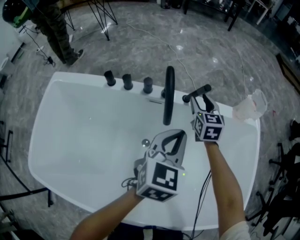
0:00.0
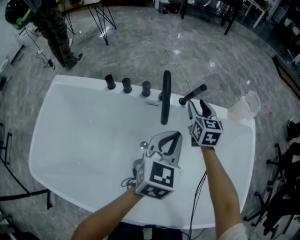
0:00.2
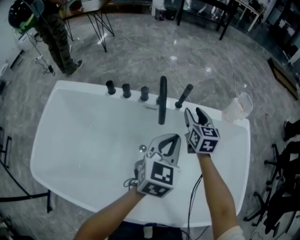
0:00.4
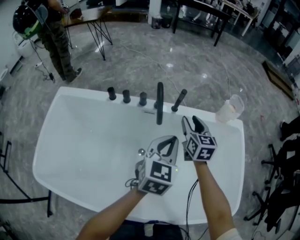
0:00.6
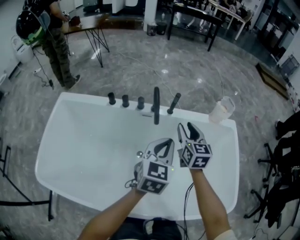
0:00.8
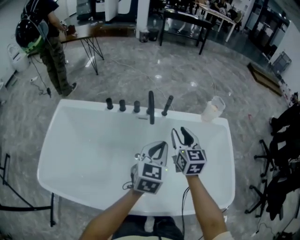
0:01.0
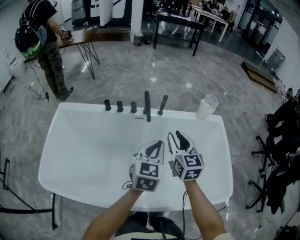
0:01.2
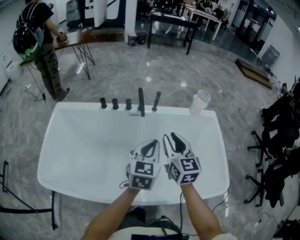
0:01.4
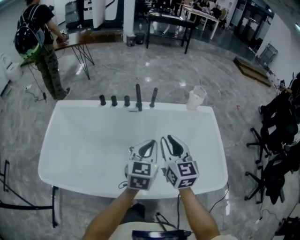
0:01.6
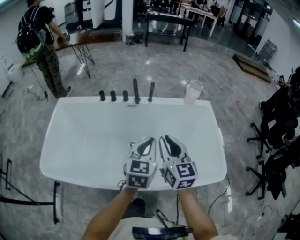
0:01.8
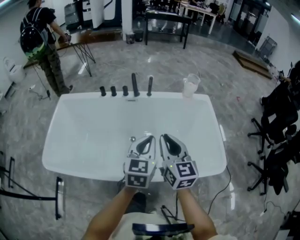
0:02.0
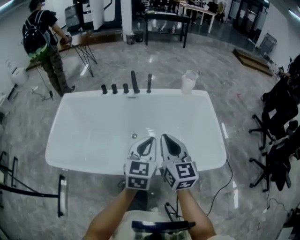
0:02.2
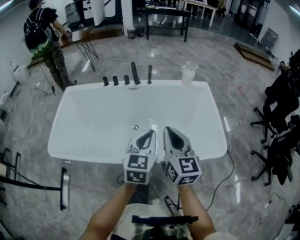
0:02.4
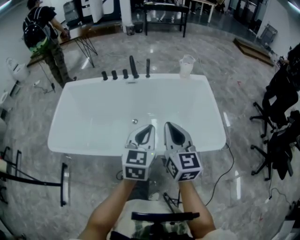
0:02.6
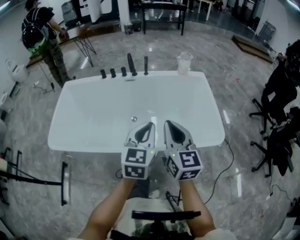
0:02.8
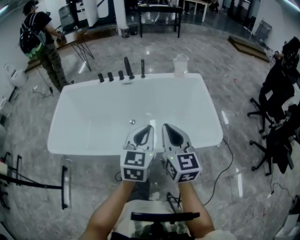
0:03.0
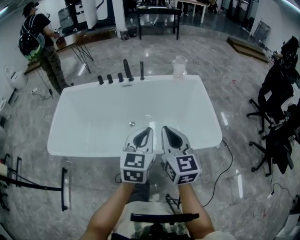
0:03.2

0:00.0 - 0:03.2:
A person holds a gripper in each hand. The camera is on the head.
0:00.0 - 0:01.6: The left gripper moves backward and upward, approximately 25 cm. Meanwhile the right gripper goes about 50 cm backward and upward, and closes its fingers.
0:01.6 - 0:03.2: Both grippers move backward, approximately 25 cm. The right gripper closes up.

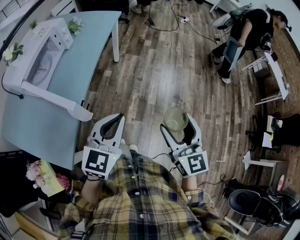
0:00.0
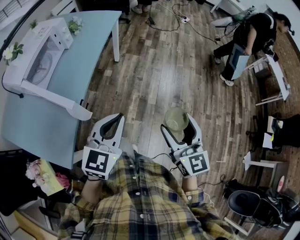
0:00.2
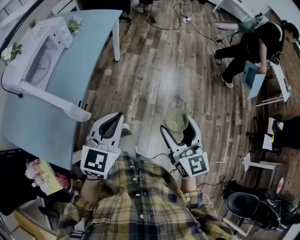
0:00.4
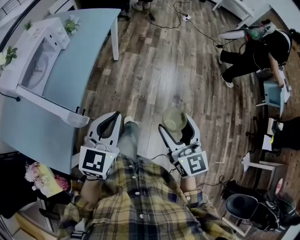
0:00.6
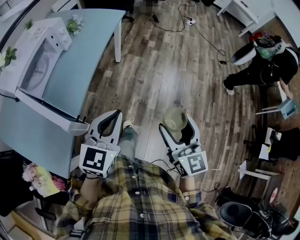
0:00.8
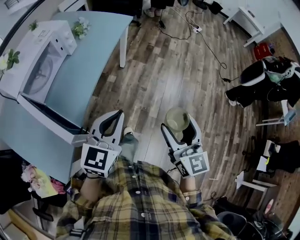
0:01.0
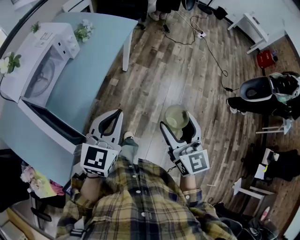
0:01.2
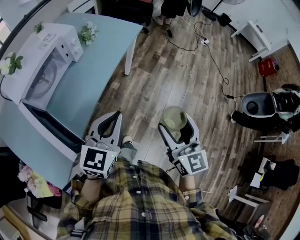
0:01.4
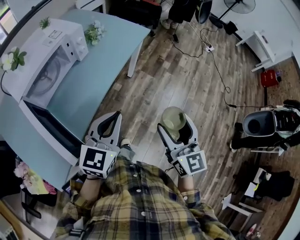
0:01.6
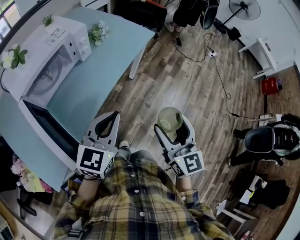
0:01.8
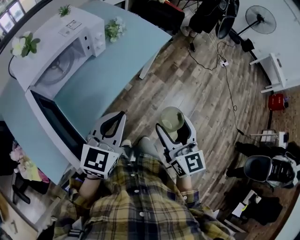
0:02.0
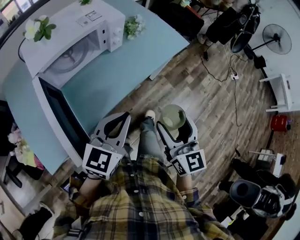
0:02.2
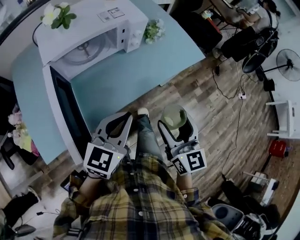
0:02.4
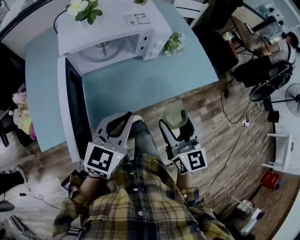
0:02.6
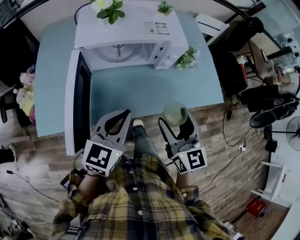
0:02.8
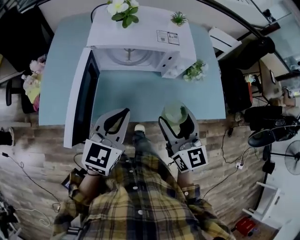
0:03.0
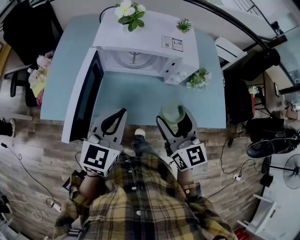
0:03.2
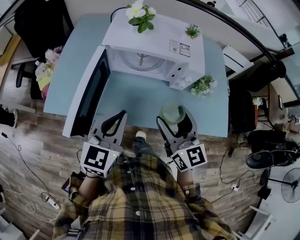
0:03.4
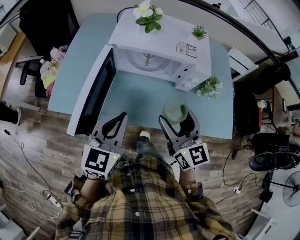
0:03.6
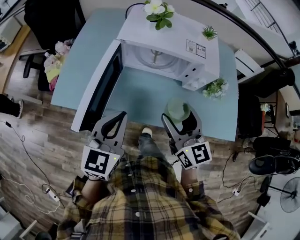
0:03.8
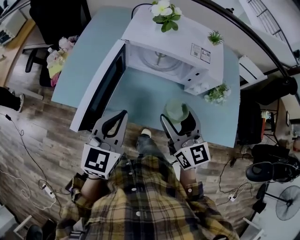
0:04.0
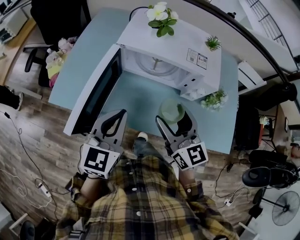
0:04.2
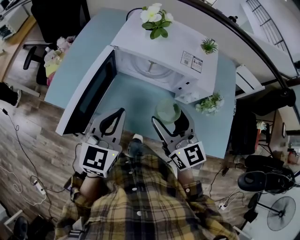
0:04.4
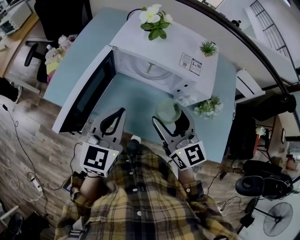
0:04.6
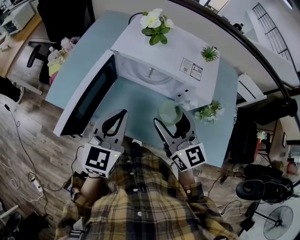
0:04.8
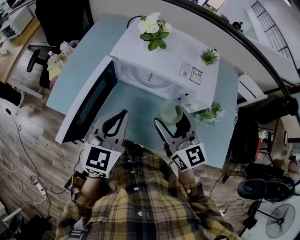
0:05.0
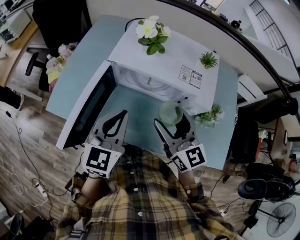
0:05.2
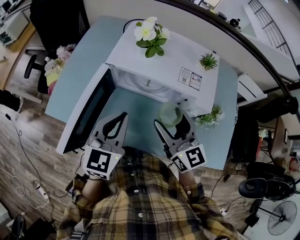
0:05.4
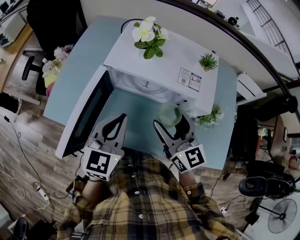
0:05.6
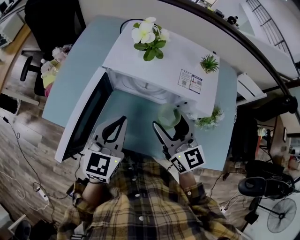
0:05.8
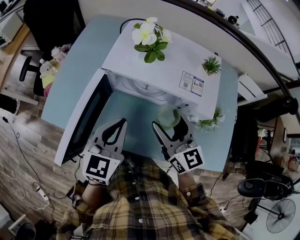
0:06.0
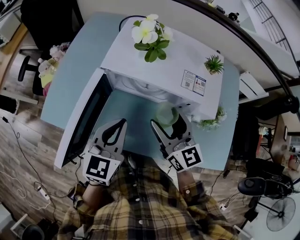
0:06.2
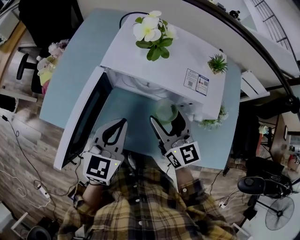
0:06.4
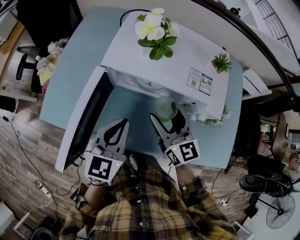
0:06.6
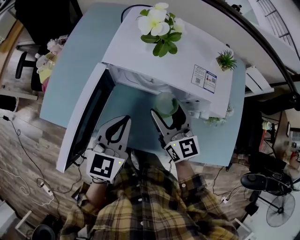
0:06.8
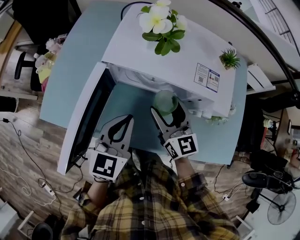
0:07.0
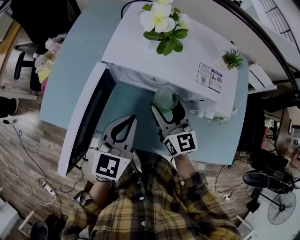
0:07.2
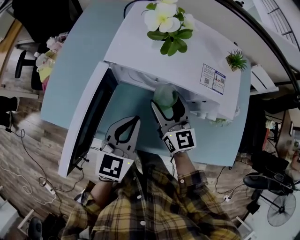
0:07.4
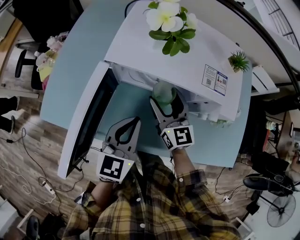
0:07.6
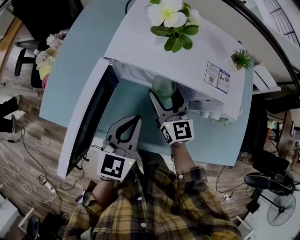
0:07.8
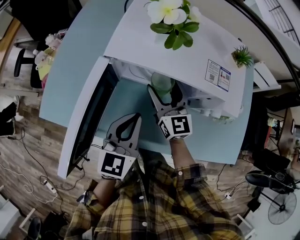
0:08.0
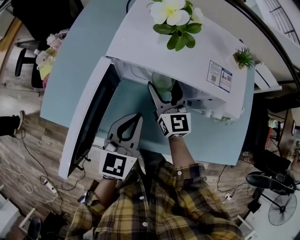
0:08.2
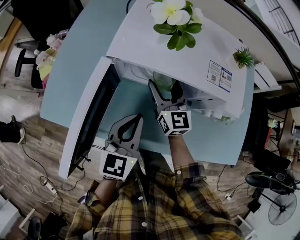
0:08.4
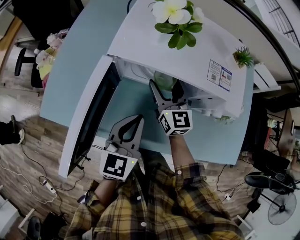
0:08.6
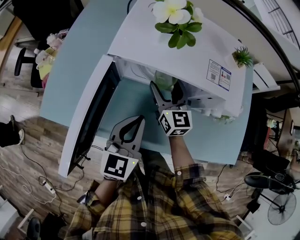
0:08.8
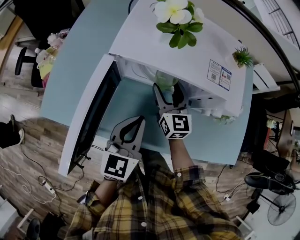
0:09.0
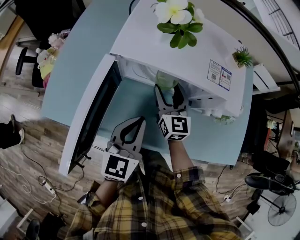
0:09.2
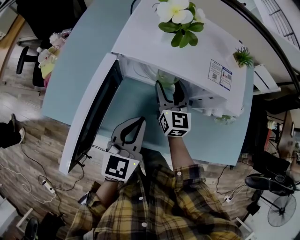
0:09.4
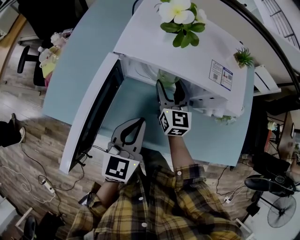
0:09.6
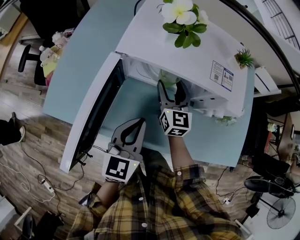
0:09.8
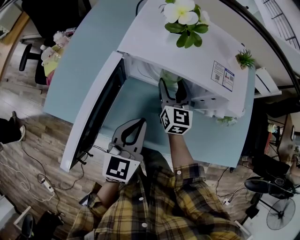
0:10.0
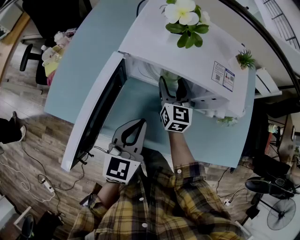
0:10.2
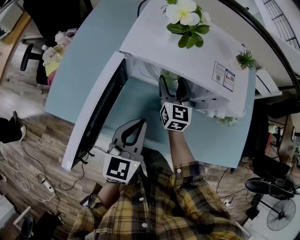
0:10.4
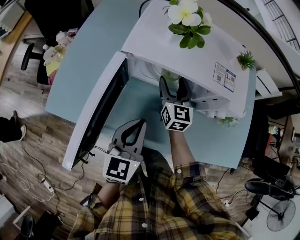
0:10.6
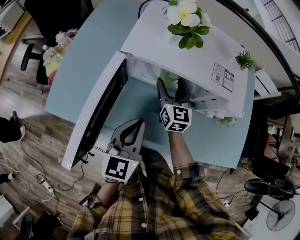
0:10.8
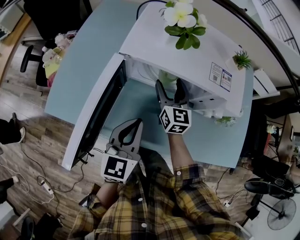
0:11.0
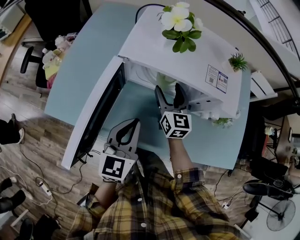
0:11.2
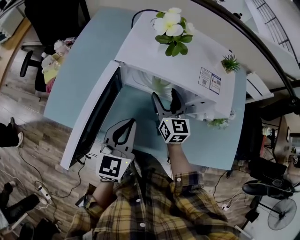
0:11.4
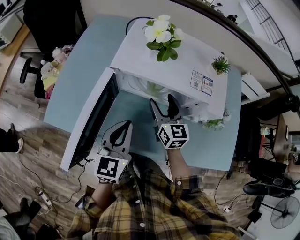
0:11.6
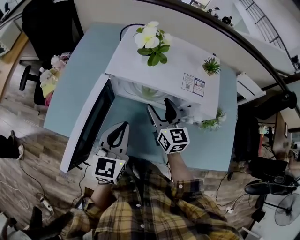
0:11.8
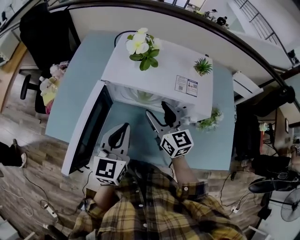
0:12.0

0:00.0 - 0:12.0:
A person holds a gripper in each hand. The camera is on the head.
0:00.0 - 0:01.6: The grippers both shift forward by about 25 cm.
0:01.6 - 0:03.0: The left gripper changes place by some 15 cm, and swivels about 60 degrees. Meanwhile the right gripper shifts by roughly 35 cm, and turns by some 60 degrees.
0:03.0 - 0:04.4: The left gripper changes its angle by approximately 20 degrees. Meanwhile the right gripper ends up some 10 cm from where it was, and changes its angle by some 30 degrees.
0:04.4 - 0:06.0: Both grippers travel together forward, approximately 10 cm.
0:06.0 - 0:07.6: The left gripper moves downward, about 5 cm. Meanwhile the right gripper is displaced downward and forward by about 15 cm.
0:07.6 - 0:09.0: The grippers stay close to where they were, moving slightly.
0:09.0 - 0:10.4: The grippers stay close to where they were, moving slightly.
0:10.4 - 0:12.0: The left gripper is displaced upward by roughly 5 cm, while the right gripper heads upward and backward, covering about 10 cm.

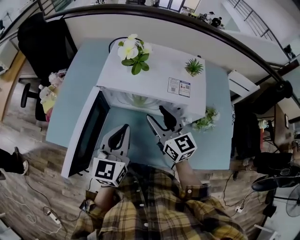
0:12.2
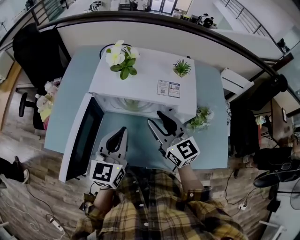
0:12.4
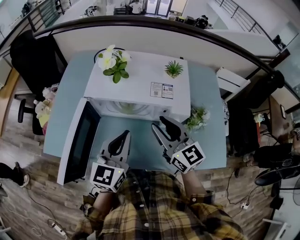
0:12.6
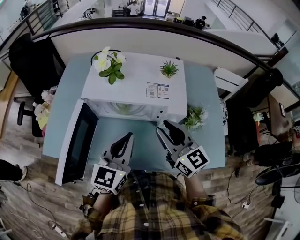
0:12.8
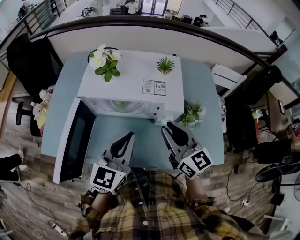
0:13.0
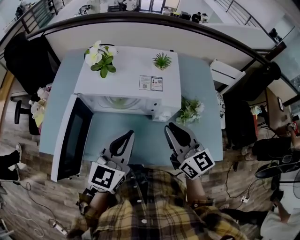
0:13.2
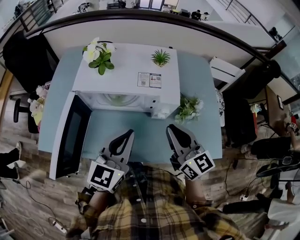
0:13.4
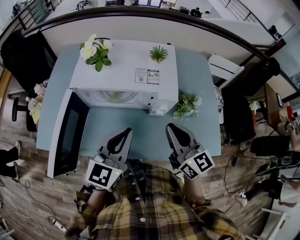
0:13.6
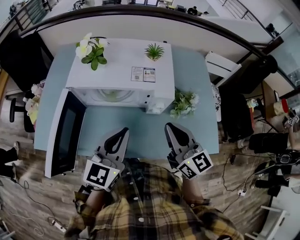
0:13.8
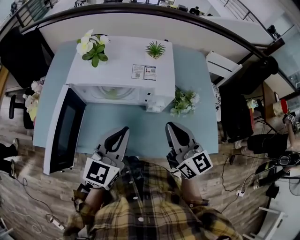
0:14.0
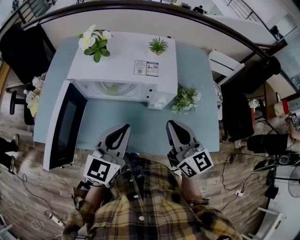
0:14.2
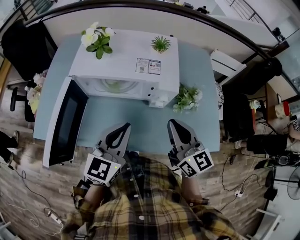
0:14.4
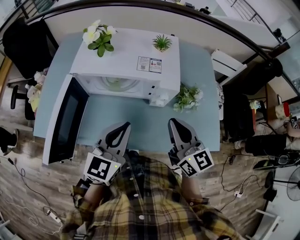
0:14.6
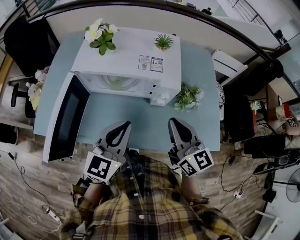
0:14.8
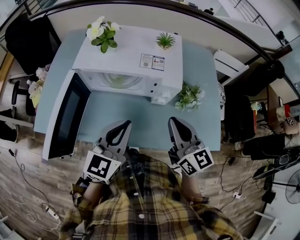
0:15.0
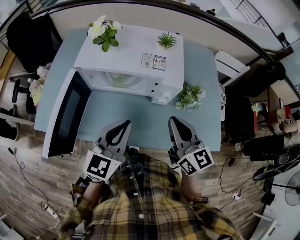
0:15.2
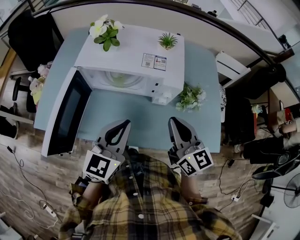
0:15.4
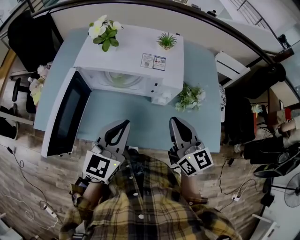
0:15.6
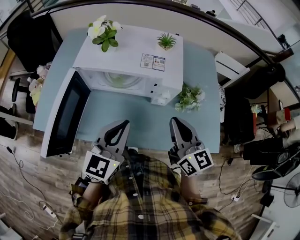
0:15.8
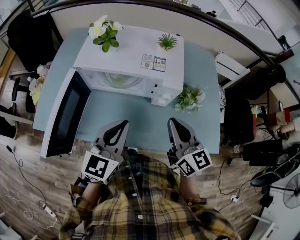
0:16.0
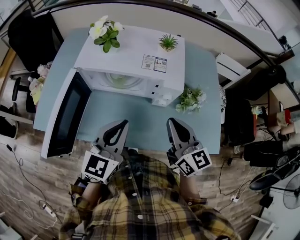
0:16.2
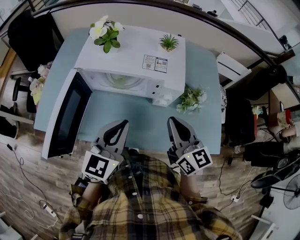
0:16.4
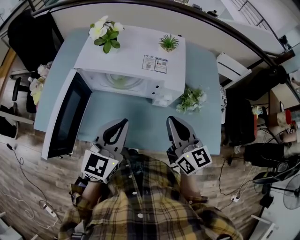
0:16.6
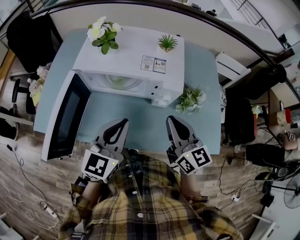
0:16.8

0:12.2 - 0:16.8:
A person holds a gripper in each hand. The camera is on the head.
0:12.2 - 0:13.8: The right gripper goes approximately 20 cm to the right and backward, and closes up, while the left gripper moves to the right, about 10 cm.
0:13.8 - 0:16.8: The grippers move only a little.

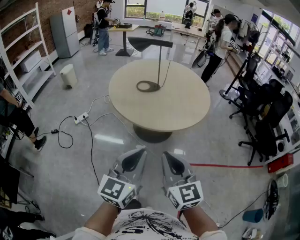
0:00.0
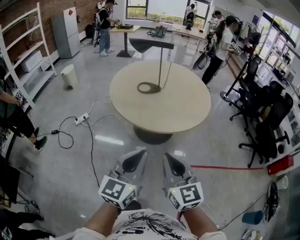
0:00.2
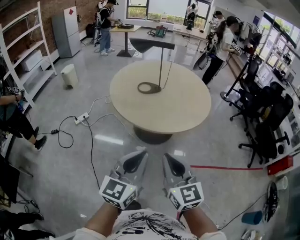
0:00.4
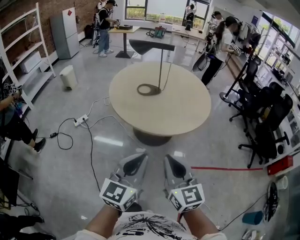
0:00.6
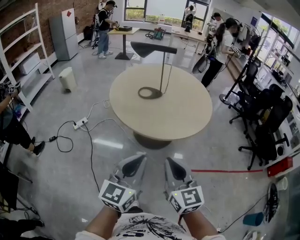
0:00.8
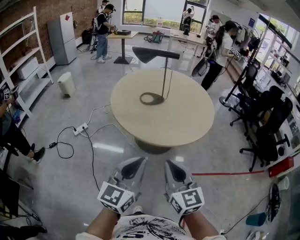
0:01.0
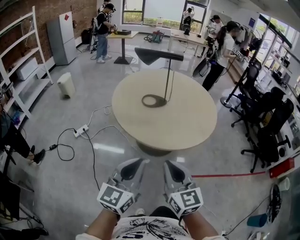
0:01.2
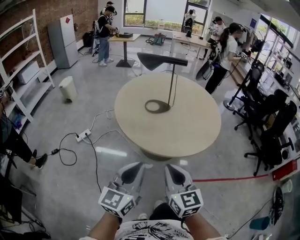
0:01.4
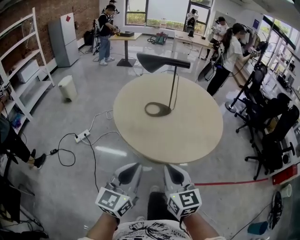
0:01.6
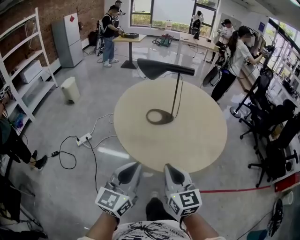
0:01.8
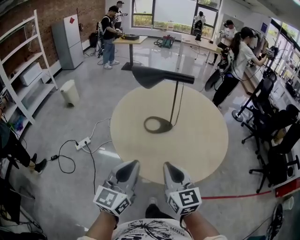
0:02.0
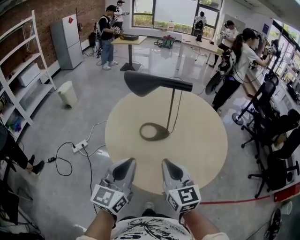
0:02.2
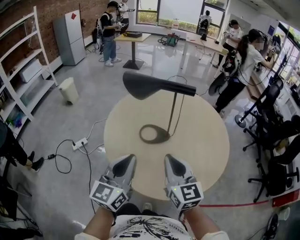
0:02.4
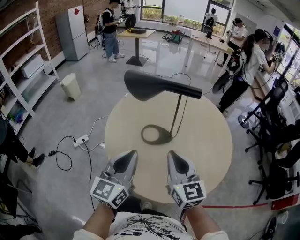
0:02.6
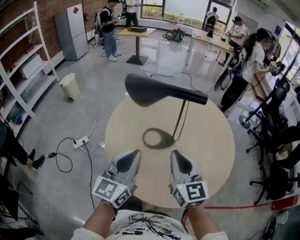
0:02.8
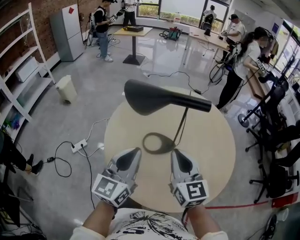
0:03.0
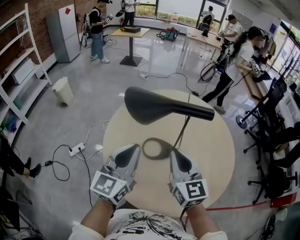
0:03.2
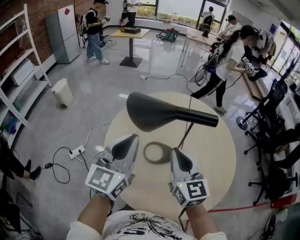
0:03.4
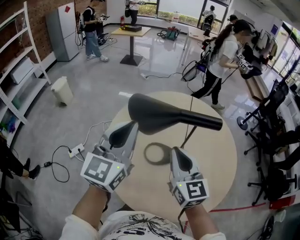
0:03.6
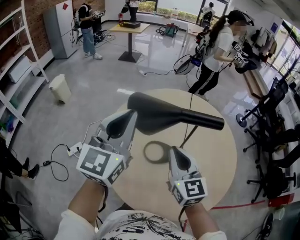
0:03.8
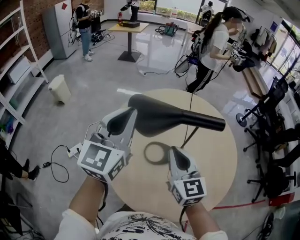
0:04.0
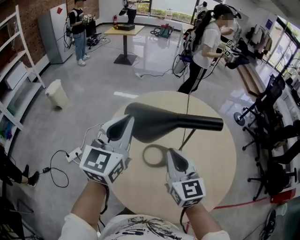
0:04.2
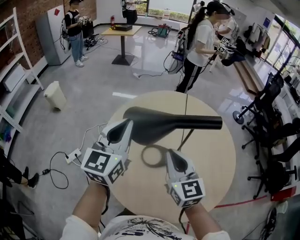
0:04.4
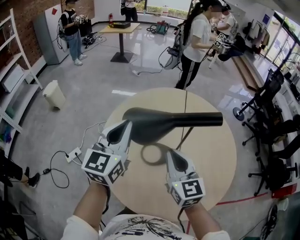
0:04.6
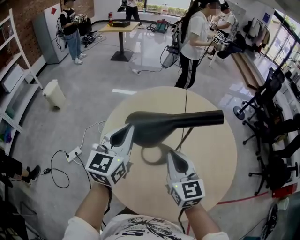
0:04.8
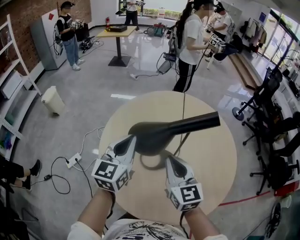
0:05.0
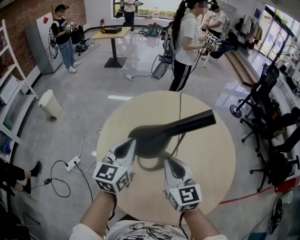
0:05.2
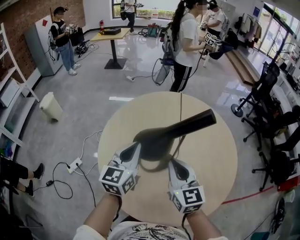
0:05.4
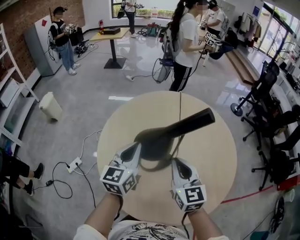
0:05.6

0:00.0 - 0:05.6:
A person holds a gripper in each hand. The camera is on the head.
0:00.0 - 0:01.4: The right gripper moves forward and to the left, about 15 cm. Meanwhile the left gripper is displaced to the left and forward by about 15 cm.
0:01.4 - 0:02.8: The two grippers go about 35 cm forward.
0:02.8 - 0:04.2: The right gripper goes about 15 cm forward and to the left; the left gripper moves forward and upward, approximately 20 cm.
0:04.2 - 0:05.6: The left gripper moves downward and to the right, some 15 cm. The right gripper is displaced to the right by about 5 cm.
